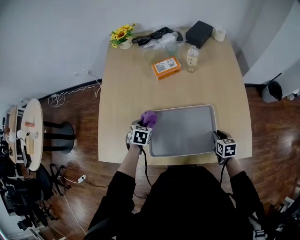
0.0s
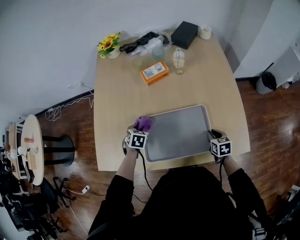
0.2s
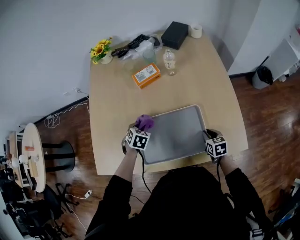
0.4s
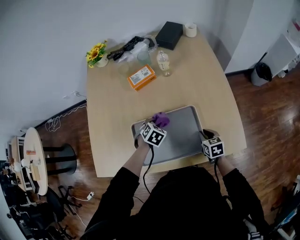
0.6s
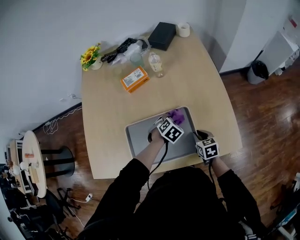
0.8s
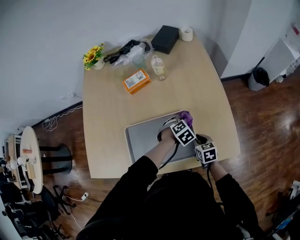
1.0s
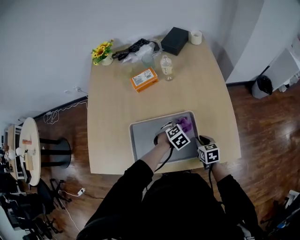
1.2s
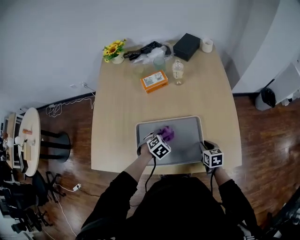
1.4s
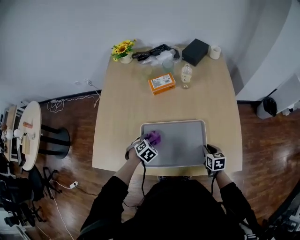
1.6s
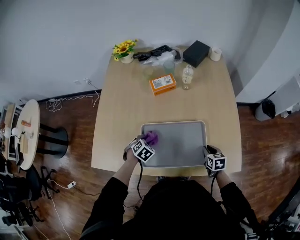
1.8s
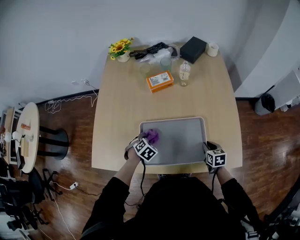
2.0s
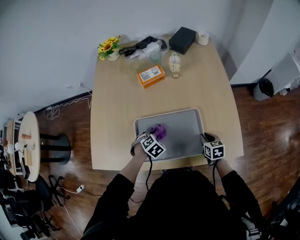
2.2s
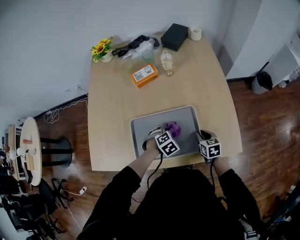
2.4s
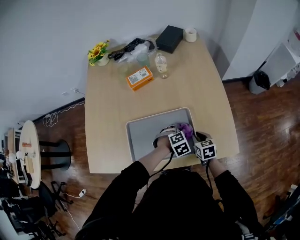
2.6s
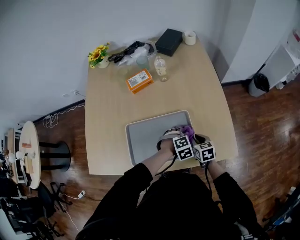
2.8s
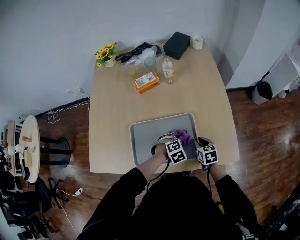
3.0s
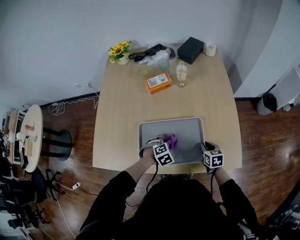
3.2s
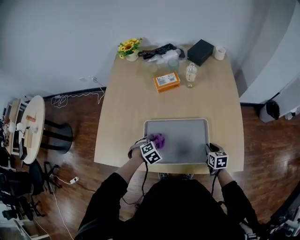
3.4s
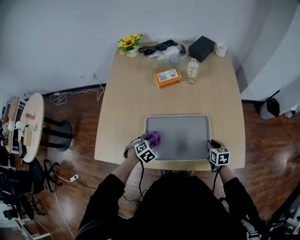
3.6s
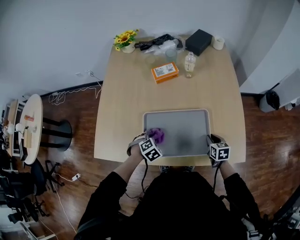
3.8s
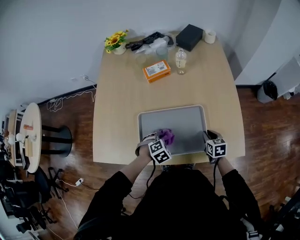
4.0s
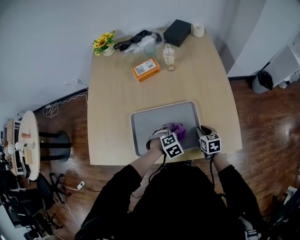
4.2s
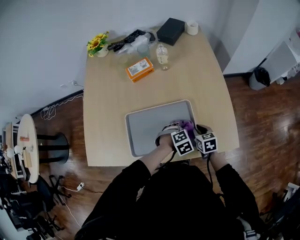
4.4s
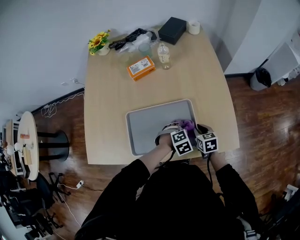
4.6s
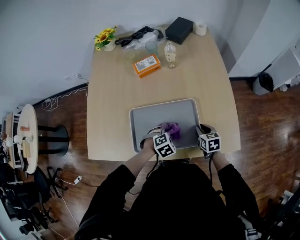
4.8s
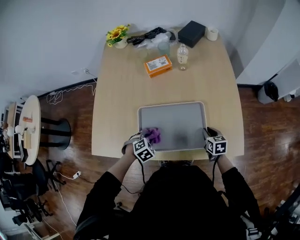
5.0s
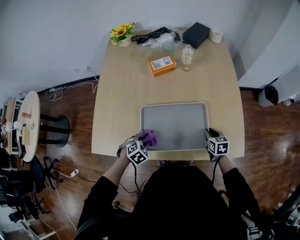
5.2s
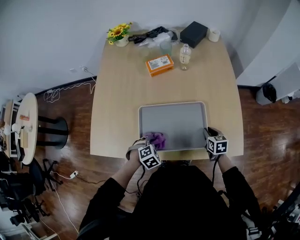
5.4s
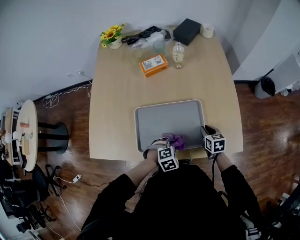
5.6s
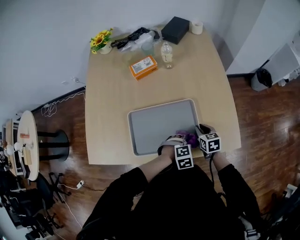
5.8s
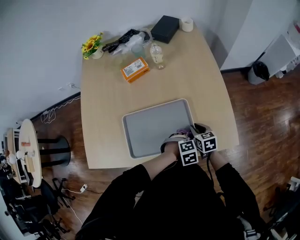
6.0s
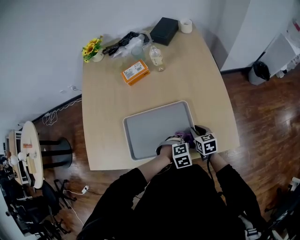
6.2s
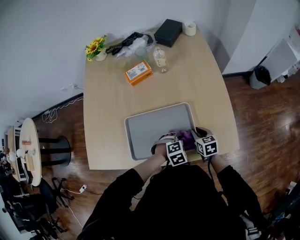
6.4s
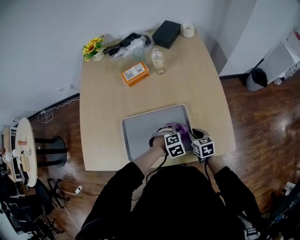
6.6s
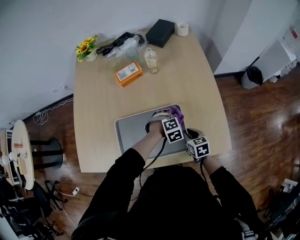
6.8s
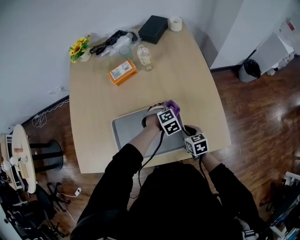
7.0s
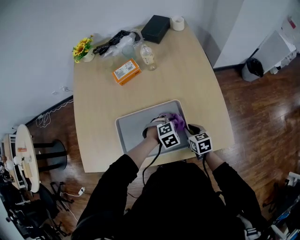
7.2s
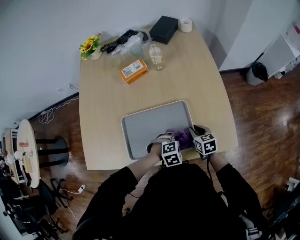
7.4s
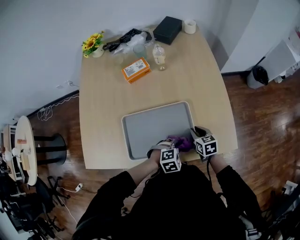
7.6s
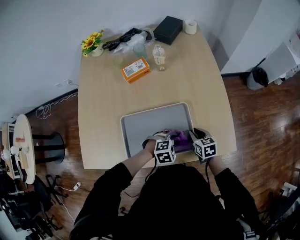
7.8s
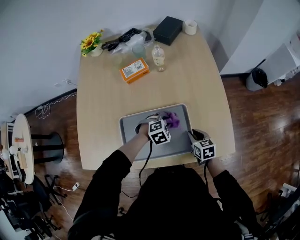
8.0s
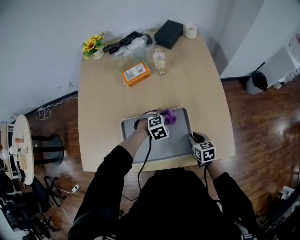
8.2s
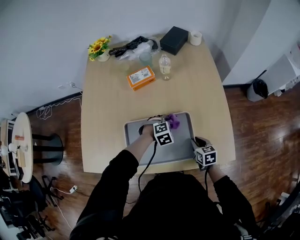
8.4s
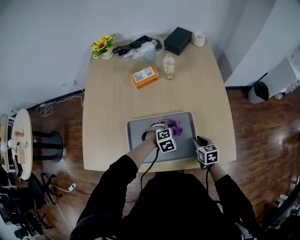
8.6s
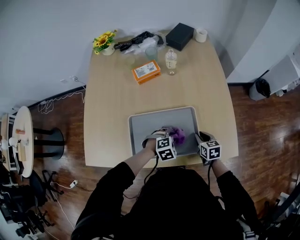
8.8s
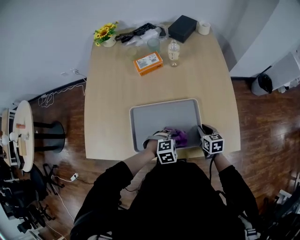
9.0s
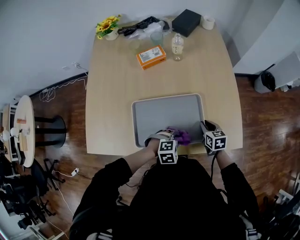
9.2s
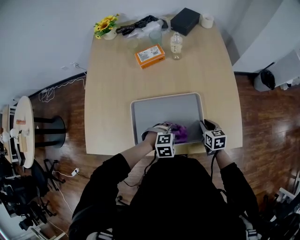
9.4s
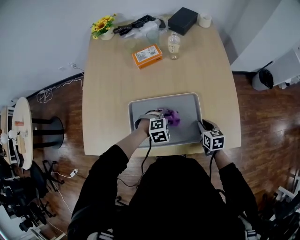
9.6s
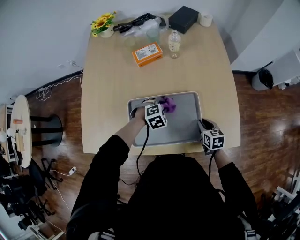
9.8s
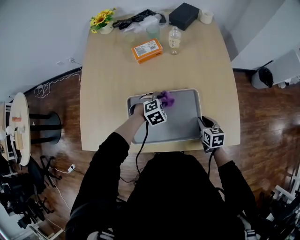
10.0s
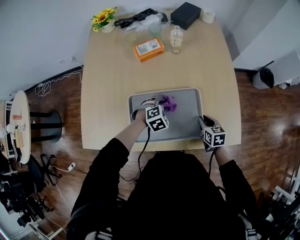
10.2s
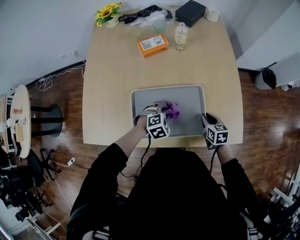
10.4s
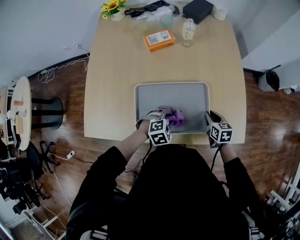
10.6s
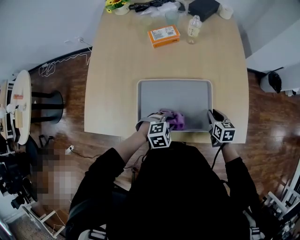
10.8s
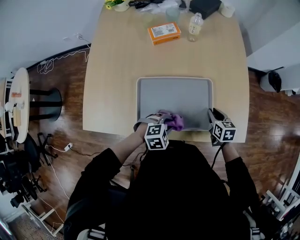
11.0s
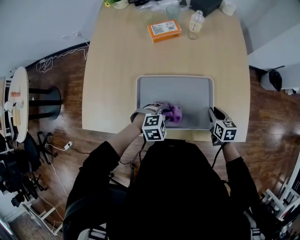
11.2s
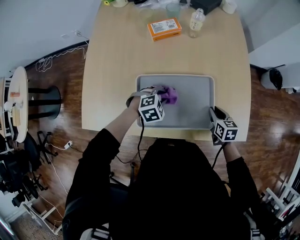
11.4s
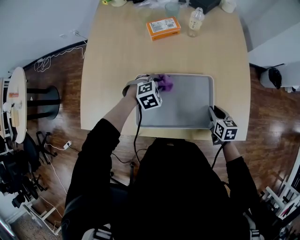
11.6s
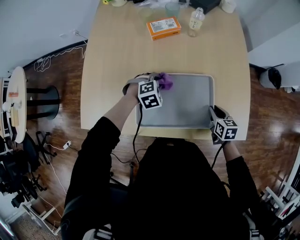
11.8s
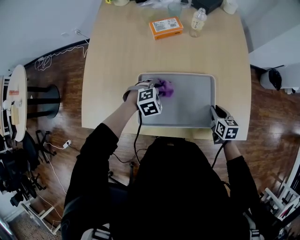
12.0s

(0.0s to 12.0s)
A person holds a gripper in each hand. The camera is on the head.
0.0s - 1.6s: The left gripper travels to the right and back again, approximately 35 cm each way, and rotates some 30 degrees.
1.6s - 3.0s: The left gripper is displaced to the right by approximately 25 cm, and rotates approximately 30 degrees.
3.0s - 4.4s: The left gripper reaches about 25 cm to the left, then returns.
4.4s - 6.0s: The left gripper is displaced backward by some 5 cm, and travels to the left and back again, about 25 cm each way.
6.0s - 7.6s: The left gripper travels forward and back again, some 20 cm each way.
7.6s - 9.0s: The left gripper is displaced to the left by roughly 5 cm, and moves roughly 20 cm forward and comes back.
9.0s - 10.4s: The left gripper shifts roughly 5 cm to the left, and travels forward and back again, some 15 cm each way.
10.4s - 12.0s: The left gripper moves to the left, some 10 cm, and travels backward and back again, approximately 10 cm each way.

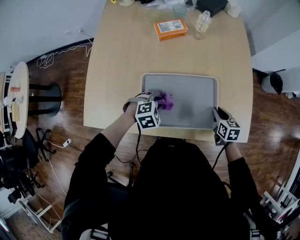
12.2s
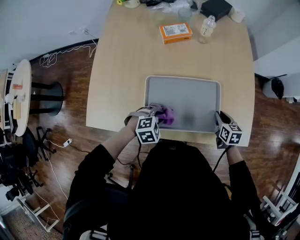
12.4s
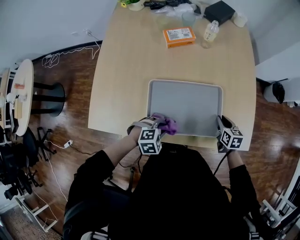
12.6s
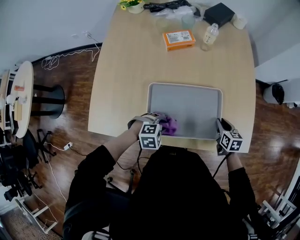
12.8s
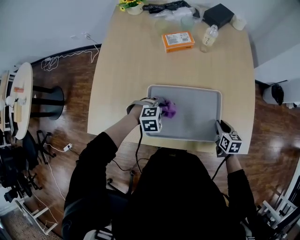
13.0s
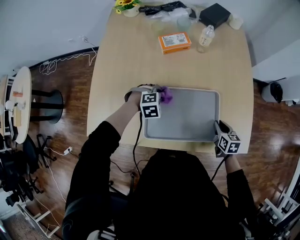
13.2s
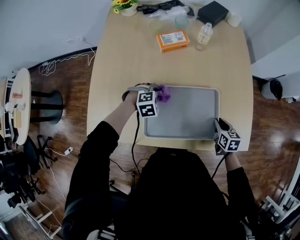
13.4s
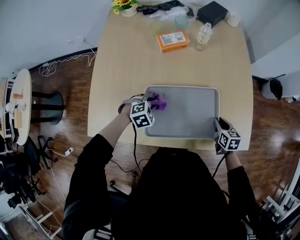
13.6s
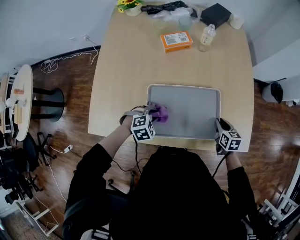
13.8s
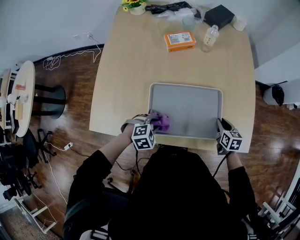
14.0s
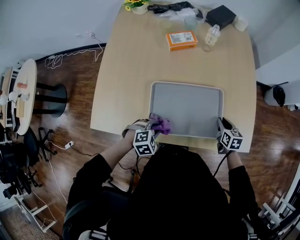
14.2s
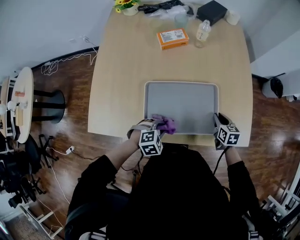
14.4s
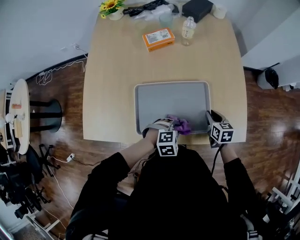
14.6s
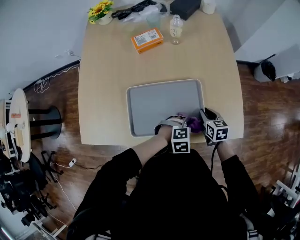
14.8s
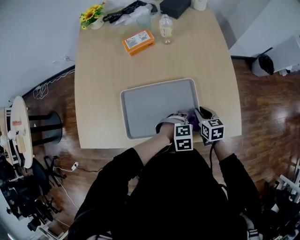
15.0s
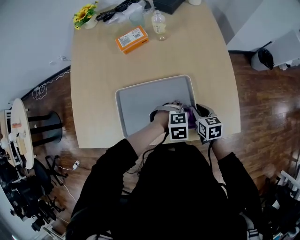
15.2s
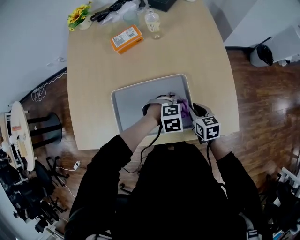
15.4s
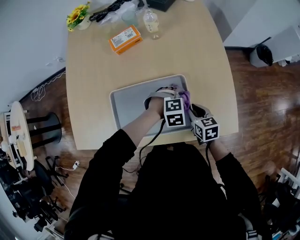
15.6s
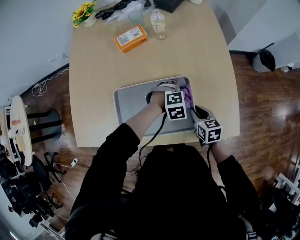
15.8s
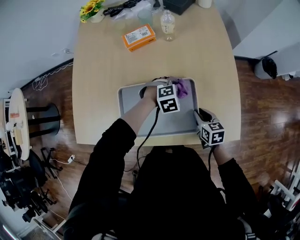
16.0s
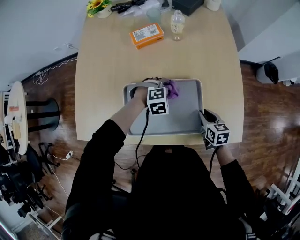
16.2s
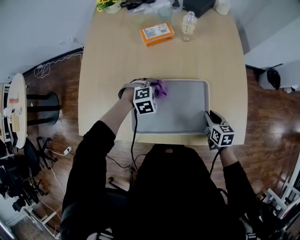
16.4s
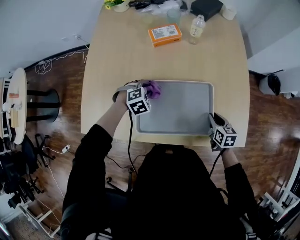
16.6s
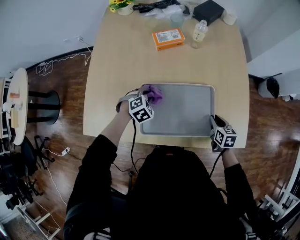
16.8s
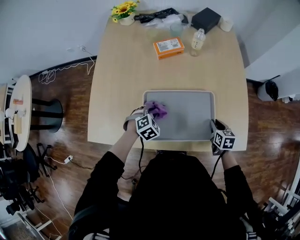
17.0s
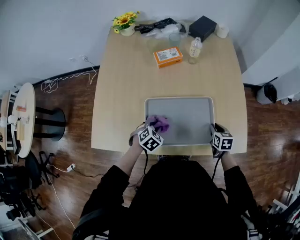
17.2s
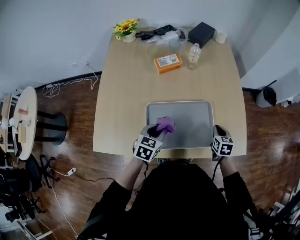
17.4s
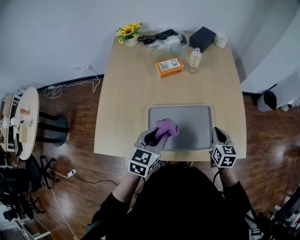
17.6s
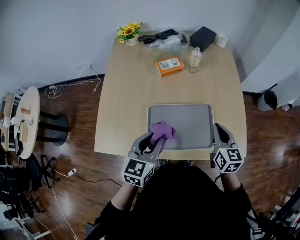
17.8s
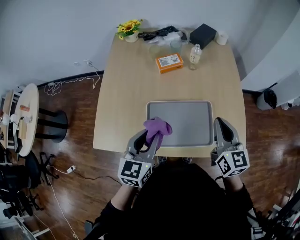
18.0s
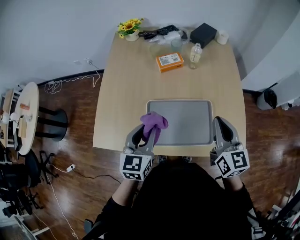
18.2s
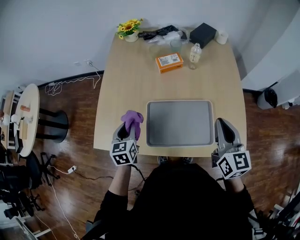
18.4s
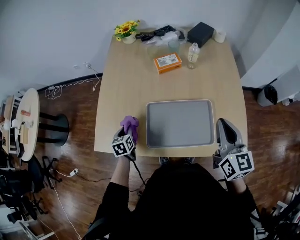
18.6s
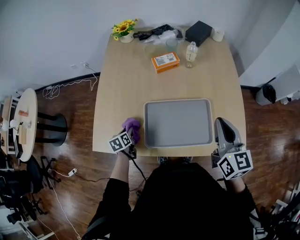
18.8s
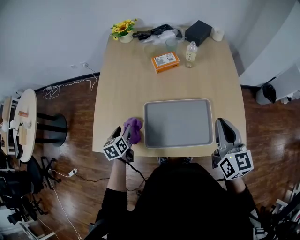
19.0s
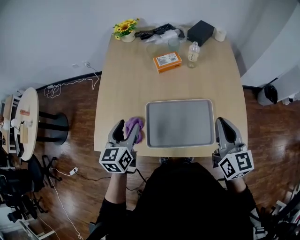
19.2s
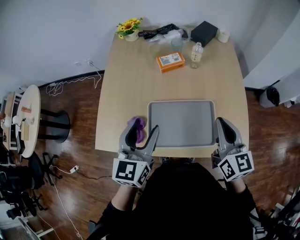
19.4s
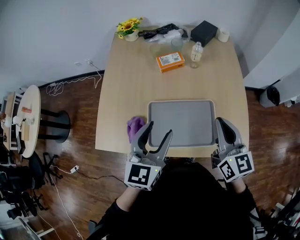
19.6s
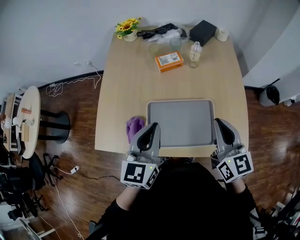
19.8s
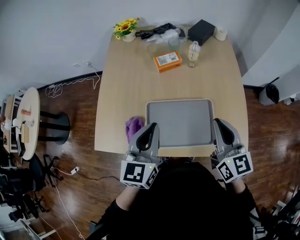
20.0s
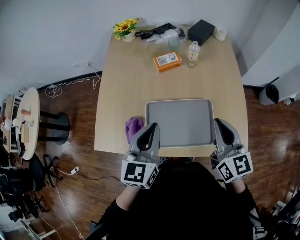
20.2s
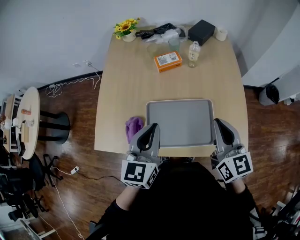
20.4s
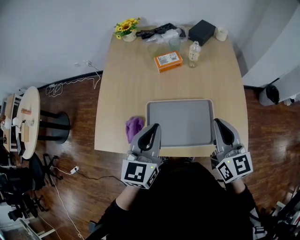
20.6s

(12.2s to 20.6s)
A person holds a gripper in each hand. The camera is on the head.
12.2s - 13.6s: The left gripper goes forward and backward, approximately 15 cm each way, reversing 2 times.
13.6s - 15.0s: The left gripper shifts roughly 30 cm to the right, and changes its angle by approximately 20 degrees.
15.0s - 16.4s: The left gripper moves to the left and forward, some 25 cm.
16.4s - 17.8s: The right gripper goes some 20 cm upward, swivels about 30 degrees, and closes up. The left gripper moves upward and backward, roughly 30 cm, and tips its fingers upward by about 40 degrees.
17.8s - 19.2s: The left gripper is displaced to the left by approximately 10 cm, travels downward and back again, about 25 cm each way, and opens up, while the right gripper is displaced upward by about 10 cm.
19.2s - 20.6s: The left gripper goes about 15 cm to the right and upward, and closes its fingers.

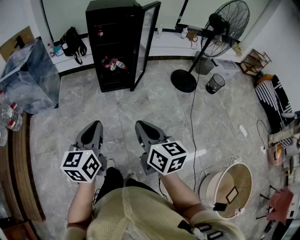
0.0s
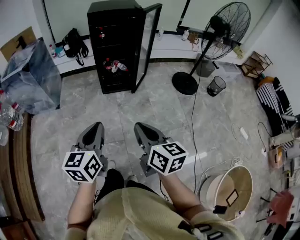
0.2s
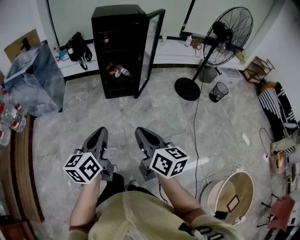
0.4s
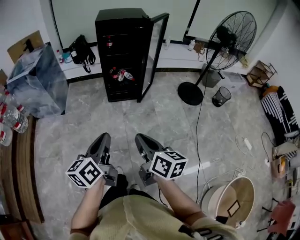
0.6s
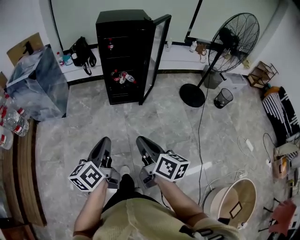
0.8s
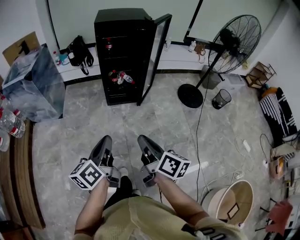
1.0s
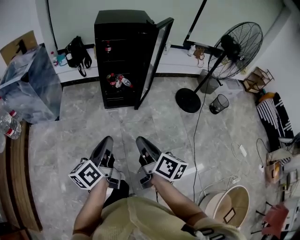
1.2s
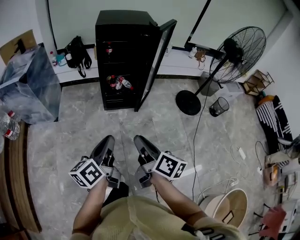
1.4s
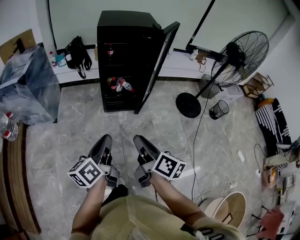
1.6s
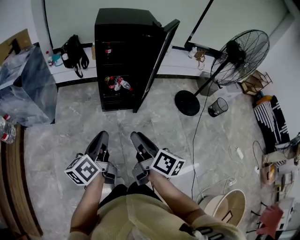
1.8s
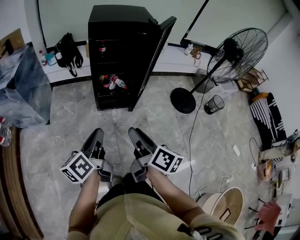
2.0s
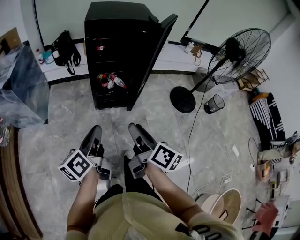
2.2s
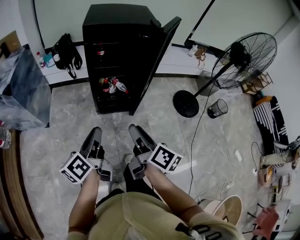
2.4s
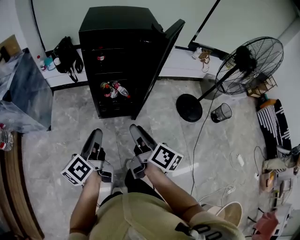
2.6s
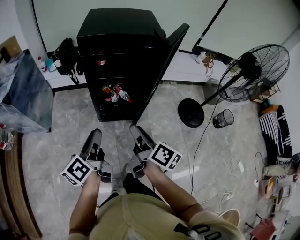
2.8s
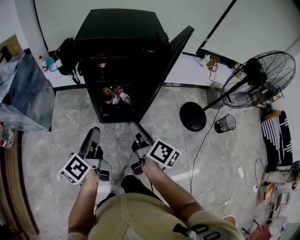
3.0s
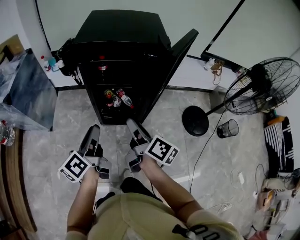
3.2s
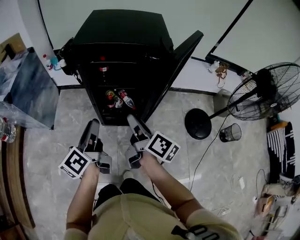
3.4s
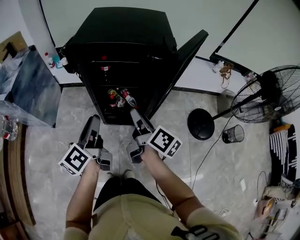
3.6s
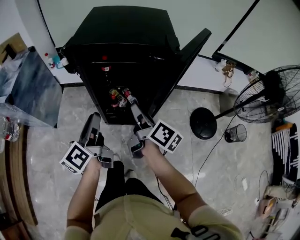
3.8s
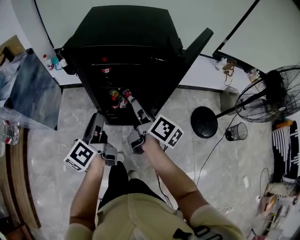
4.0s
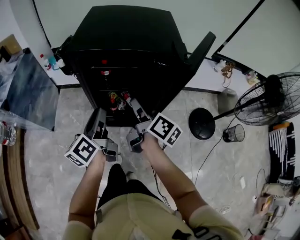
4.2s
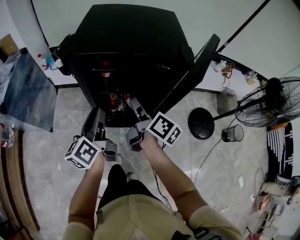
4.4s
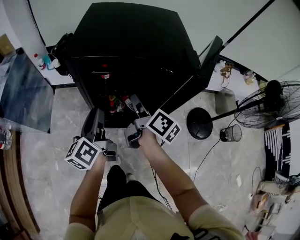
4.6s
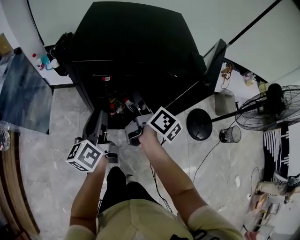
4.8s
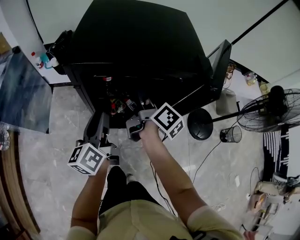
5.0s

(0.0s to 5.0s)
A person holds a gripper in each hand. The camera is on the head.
0.0s - 1.6s: Both grippers move forward, about 20 cm. The right gripper swivels some 30 degrees; the left gripper changes its angle by roughly 30 degrees.
1.6s - 3.4s: Both grippers travel together forward, roughly 35 cm. The right gripper opens its fingers. Meanwhile the left gripper opens its fingers.
3.4s - 5.0s: Both grippers travel together forward, some 20 cm.
